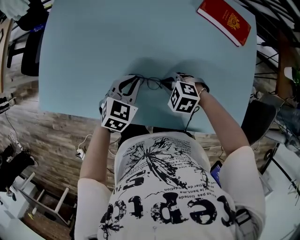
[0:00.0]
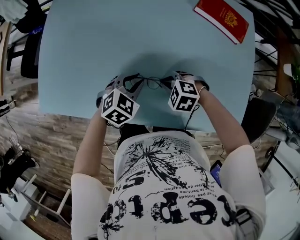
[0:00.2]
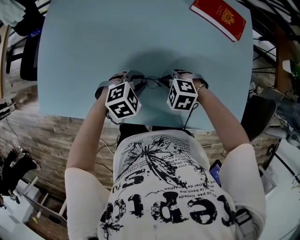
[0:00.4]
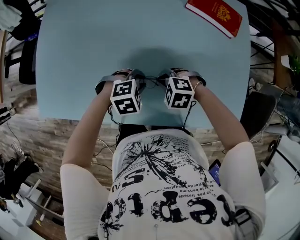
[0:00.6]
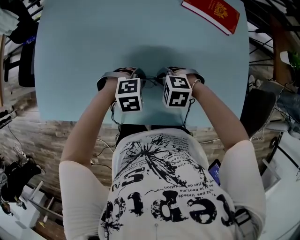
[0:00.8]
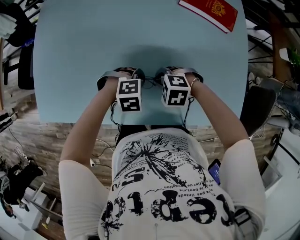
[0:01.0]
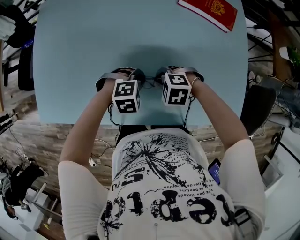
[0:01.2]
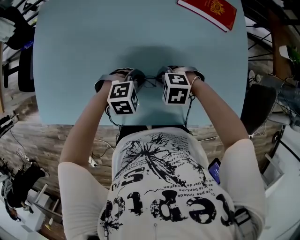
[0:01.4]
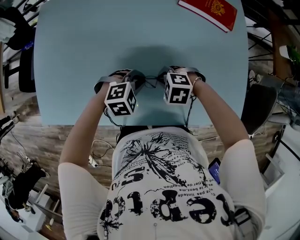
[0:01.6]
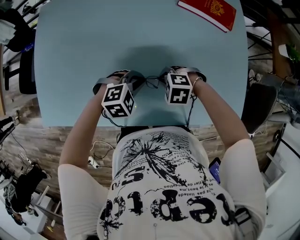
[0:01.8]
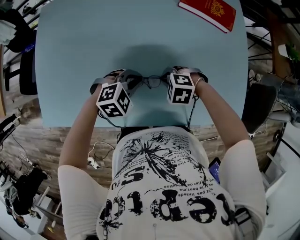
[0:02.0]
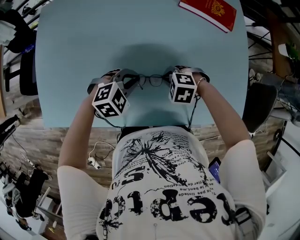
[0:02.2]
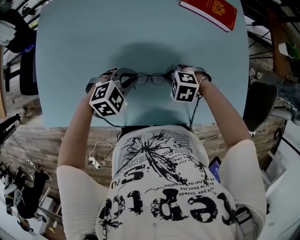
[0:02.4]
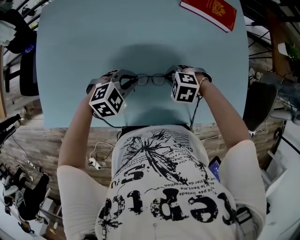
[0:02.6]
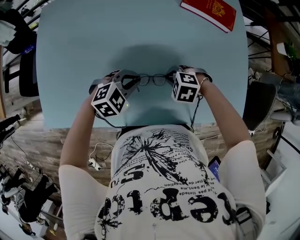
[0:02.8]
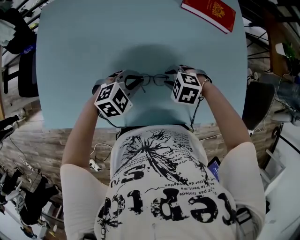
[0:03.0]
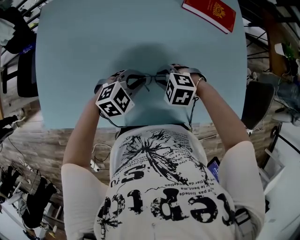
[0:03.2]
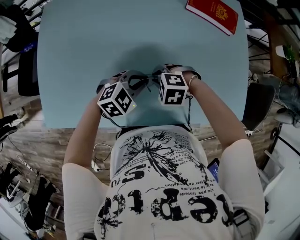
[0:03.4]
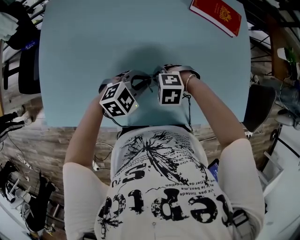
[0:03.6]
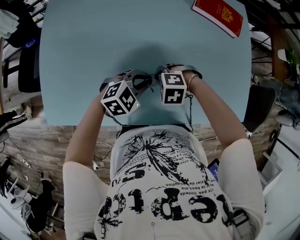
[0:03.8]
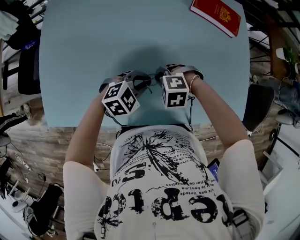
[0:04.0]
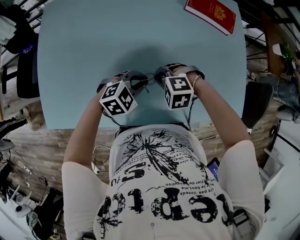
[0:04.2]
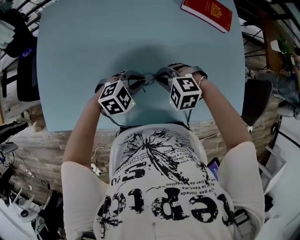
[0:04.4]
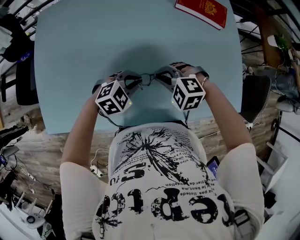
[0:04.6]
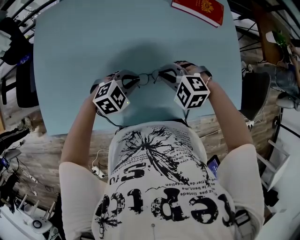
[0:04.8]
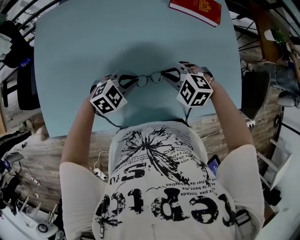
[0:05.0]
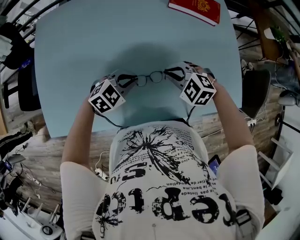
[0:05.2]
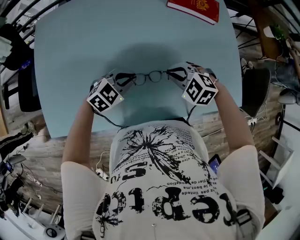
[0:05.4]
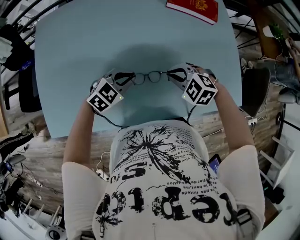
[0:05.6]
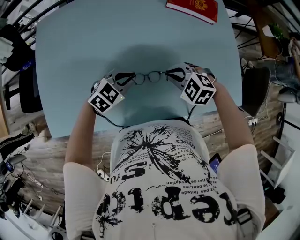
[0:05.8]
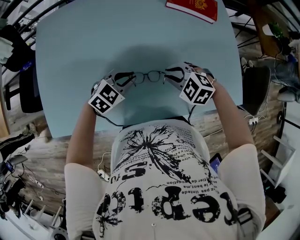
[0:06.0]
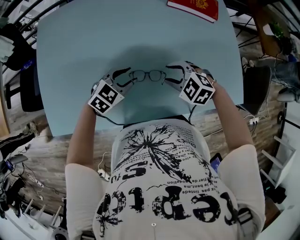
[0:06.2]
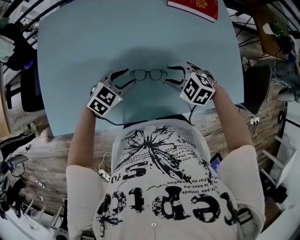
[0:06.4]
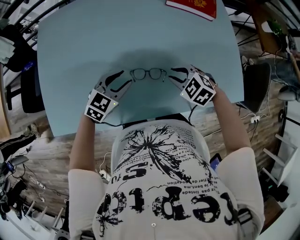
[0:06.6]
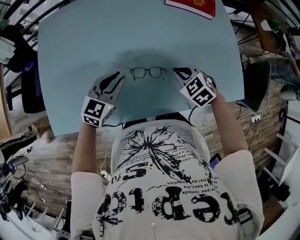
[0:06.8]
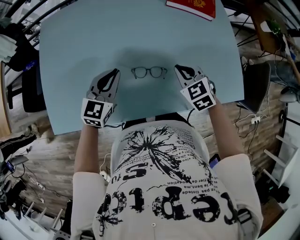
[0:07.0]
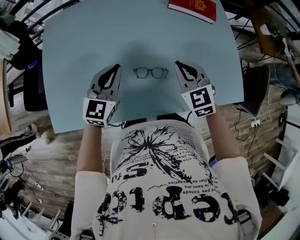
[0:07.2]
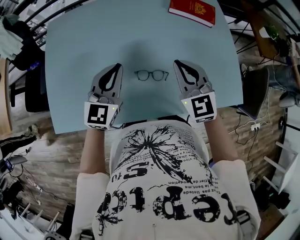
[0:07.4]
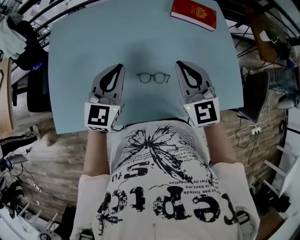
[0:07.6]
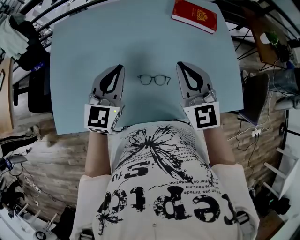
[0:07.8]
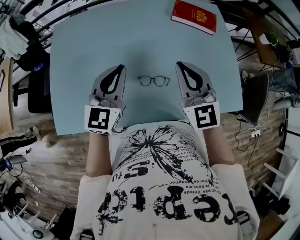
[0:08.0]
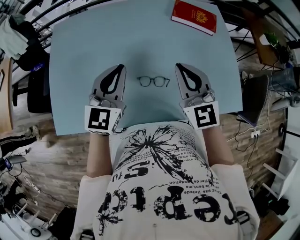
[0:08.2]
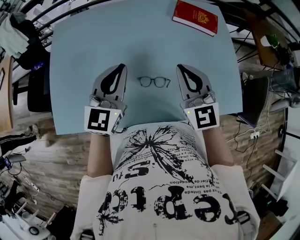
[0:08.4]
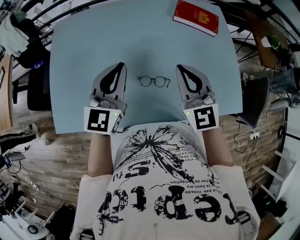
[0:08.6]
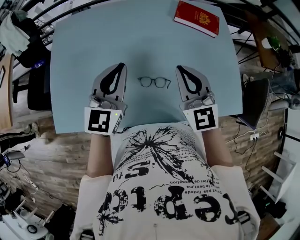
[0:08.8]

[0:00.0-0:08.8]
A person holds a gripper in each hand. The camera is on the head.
0:00.0 to 0:01.4: The left gripper shifts by roughly 10 cm, and twists some 40 degrees clockwise, seen from behind.
0:01.4 to 0:03.0: The right gripper opens its fingers. Meanwhile the left gripper shifts by approximately 5 cm.
0:03.0 to 0:04.4: The right gripper moves about 10 cm, and closes its fingers.
0:04.4 to 0:05.8: The right gripper changes place by some 10 cm, and changes its angle by approximately 20 degrees.
0:05.8 to 0:07.4: The right gripper is displaced upward by about 15 cm, angles its fingers upward, by approximately 40 degrees, and opens and closes again. Meanwhile the left gripper goes some 20 cm upward and to the left, angles its fingers upward, by some 30 degrees, and opens and closes again.
0:07.4 to 0:08.8: Both grippers move upward, some 5 cm.

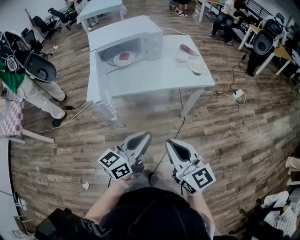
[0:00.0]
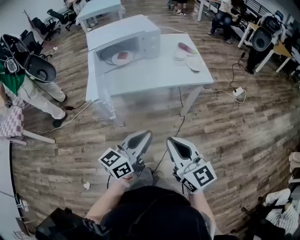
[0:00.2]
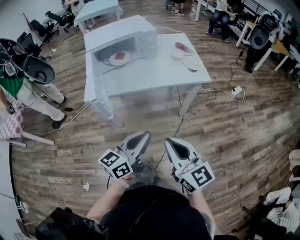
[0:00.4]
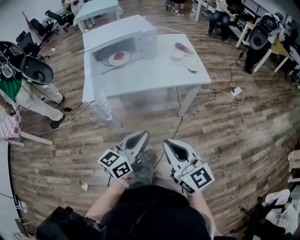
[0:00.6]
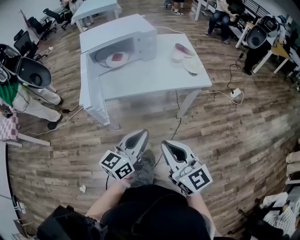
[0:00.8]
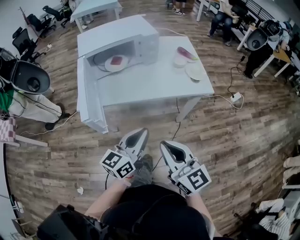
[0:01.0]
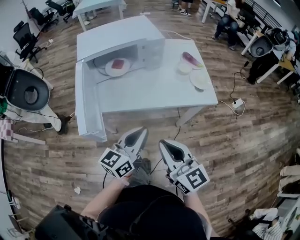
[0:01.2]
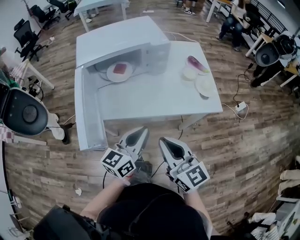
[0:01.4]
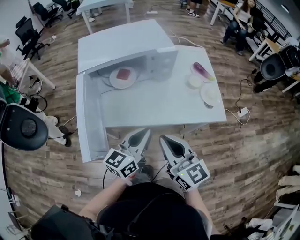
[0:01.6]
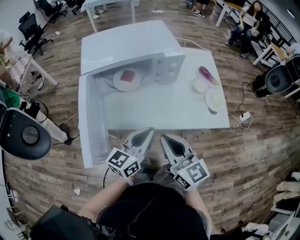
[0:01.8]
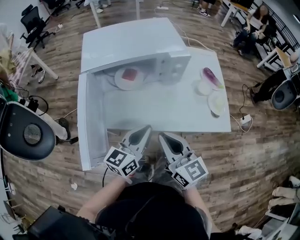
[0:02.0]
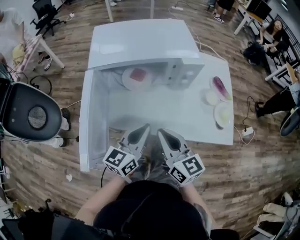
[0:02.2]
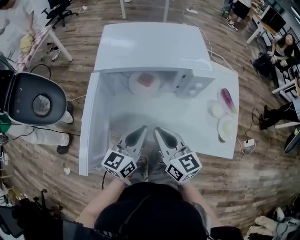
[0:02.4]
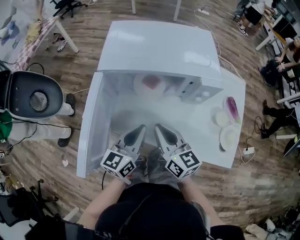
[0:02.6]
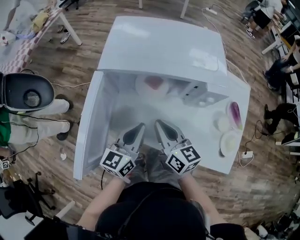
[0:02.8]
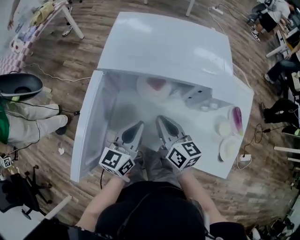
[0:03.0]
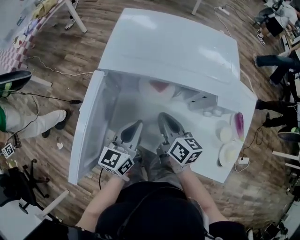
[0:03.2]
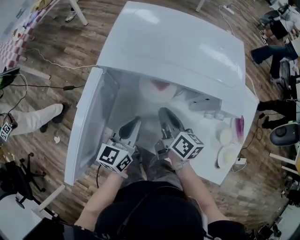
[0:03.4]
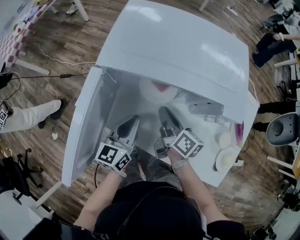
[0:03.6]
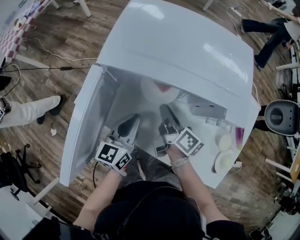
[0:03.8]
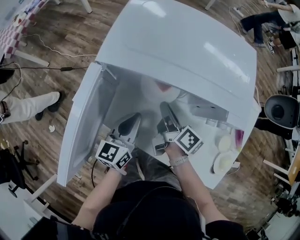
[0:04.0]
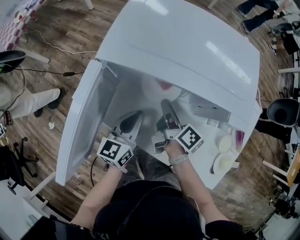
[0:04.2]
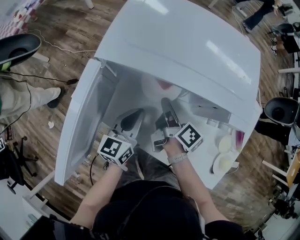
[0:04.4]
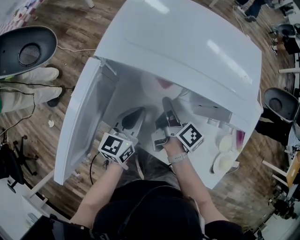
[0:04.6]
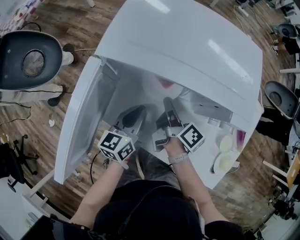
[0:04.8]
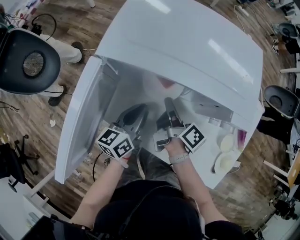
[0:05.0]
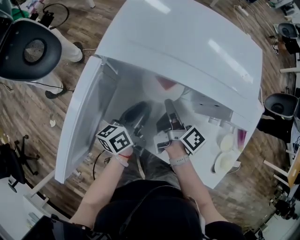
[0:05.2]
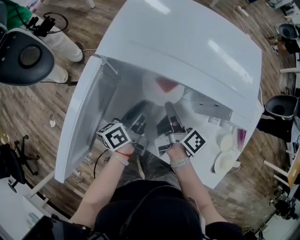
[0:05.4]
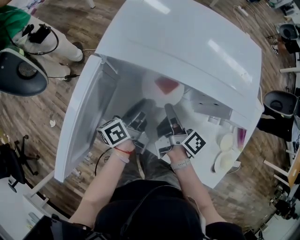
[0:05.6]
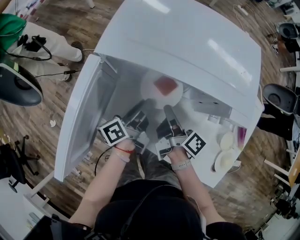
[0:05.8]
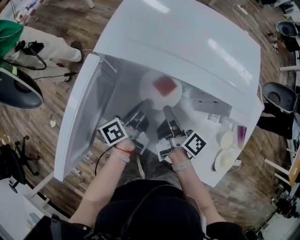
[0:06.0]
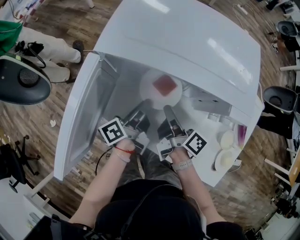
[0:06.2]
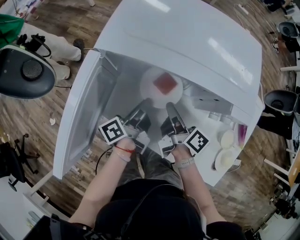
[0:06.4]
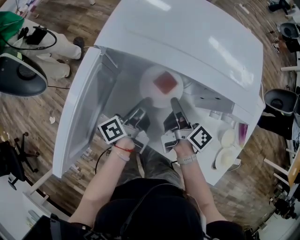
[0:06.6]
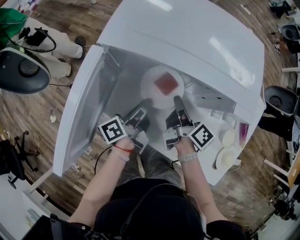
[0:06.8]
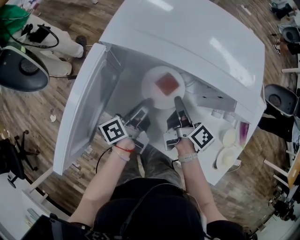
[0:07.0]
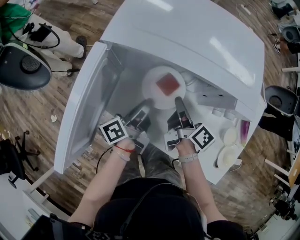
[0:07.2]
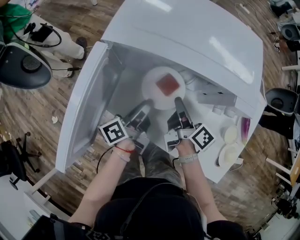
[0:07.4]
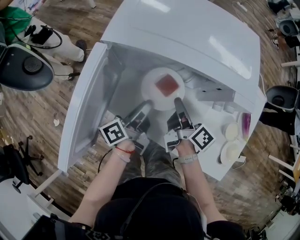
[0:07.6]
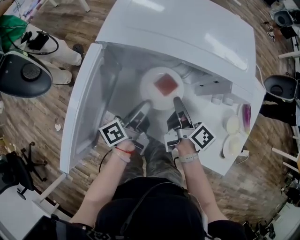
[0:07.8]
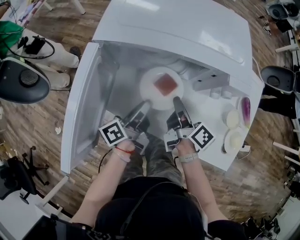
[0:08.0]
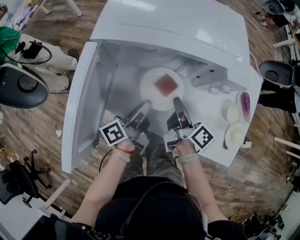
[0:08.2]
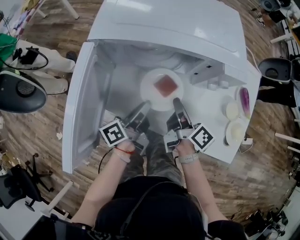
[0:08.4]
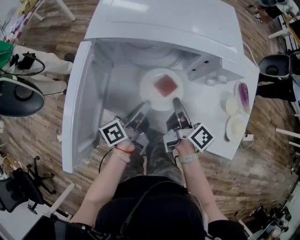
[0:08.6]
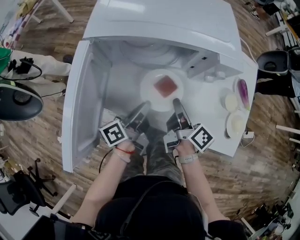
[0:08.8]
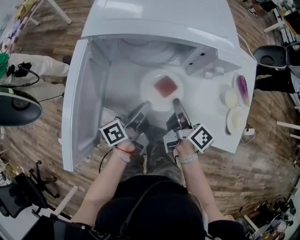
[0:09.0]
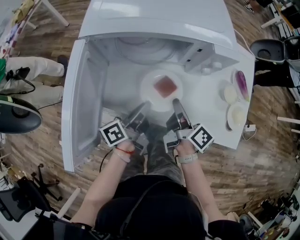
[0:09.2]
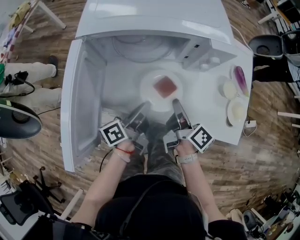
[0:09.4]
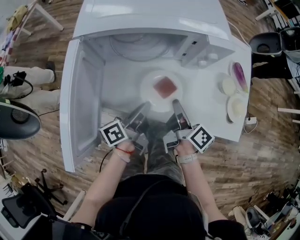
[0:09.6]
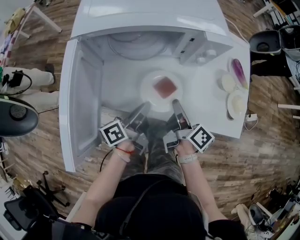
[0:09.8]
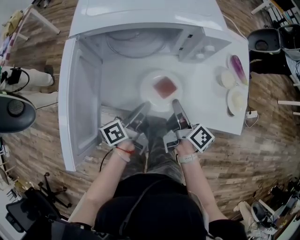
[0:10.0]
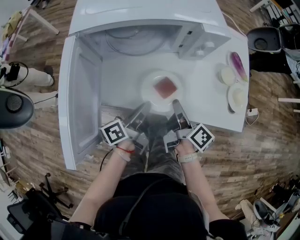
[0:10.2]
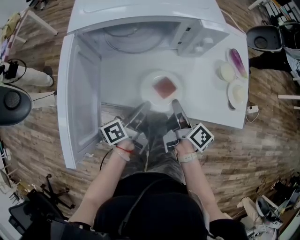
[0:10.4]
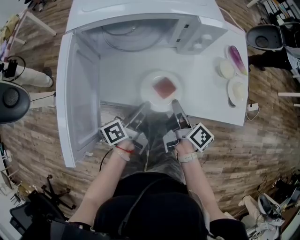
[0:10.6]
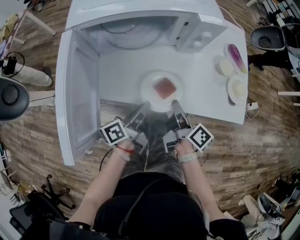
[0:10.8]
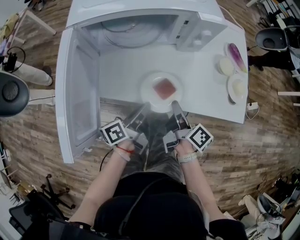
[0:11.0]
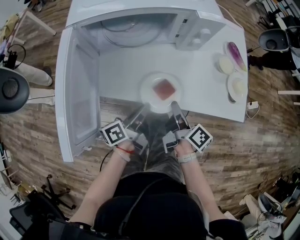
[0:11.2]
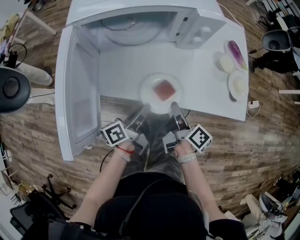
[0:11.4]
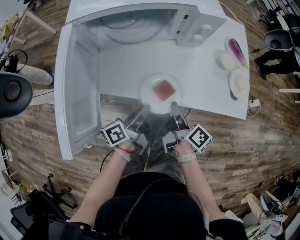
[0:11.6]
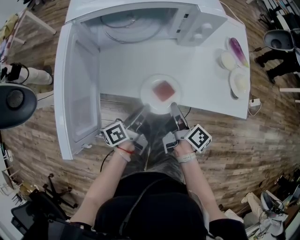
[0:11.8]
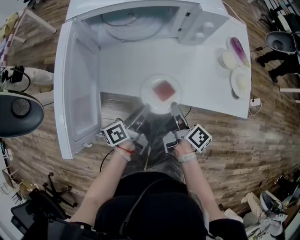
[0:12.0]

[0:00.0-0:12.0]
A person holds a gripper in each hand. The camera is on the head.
0:00.0 to 0:01.6: The two grippers go roughly 25 cm forward.
0:01.6 to 0:03.0: The left gripper shifts by about 20 cm, and rotates roughly 30 degrees. Meanwhile the right gripper ends up about 30 cm from where it was, and rotates roughly 30 degrees.
0:03.0 to 0:04.4: The right gripper travels forward and downward by roughly 10 cm, and rotates around the line of its fingers by roughly 40 degrees, clockwise from behind, while the left gripper moves downward and forward, about 10 cm.
0:04.4 to 0:06.0: The left gripper rotates around the line of its fingers by about 50 degrees, counterclockwise from behind.
0:06.0 to 0:07.6: There are only small adjustments of the grippers.
0:07.6 to 0:09.0: The left gripper moves backward, approximately 5 cm. Meanwhile the right gripper heads backward, covering roughly 10 cm.
0:09.0 to 0:10.4: The two grippers go about 5 cm backward.
0:10.4 to 0:12.0: The two grippers go about 5 cm backward.

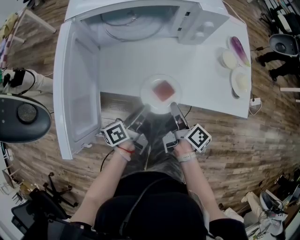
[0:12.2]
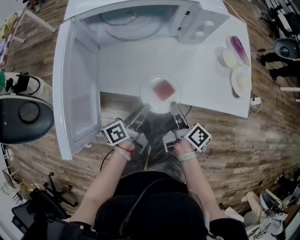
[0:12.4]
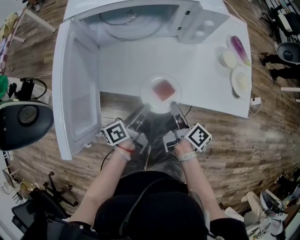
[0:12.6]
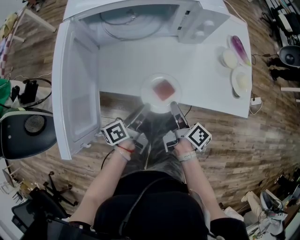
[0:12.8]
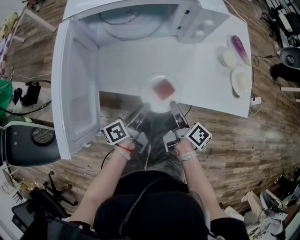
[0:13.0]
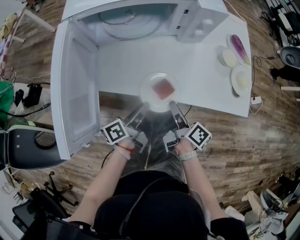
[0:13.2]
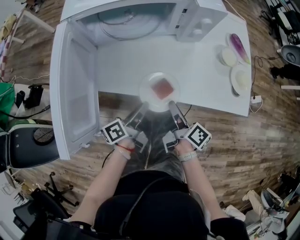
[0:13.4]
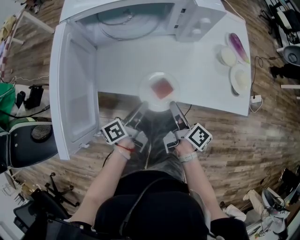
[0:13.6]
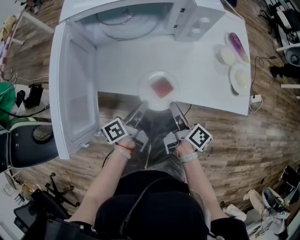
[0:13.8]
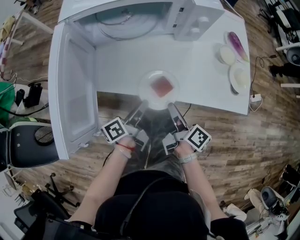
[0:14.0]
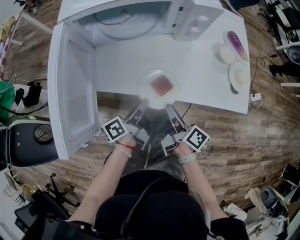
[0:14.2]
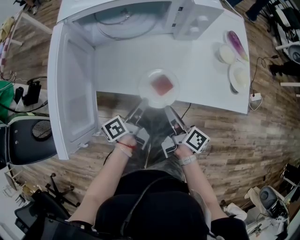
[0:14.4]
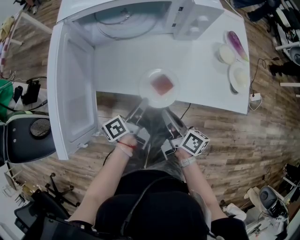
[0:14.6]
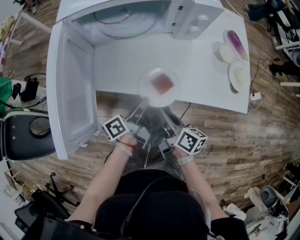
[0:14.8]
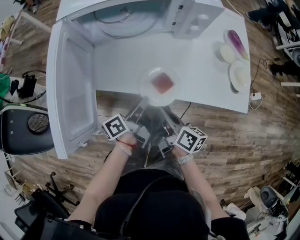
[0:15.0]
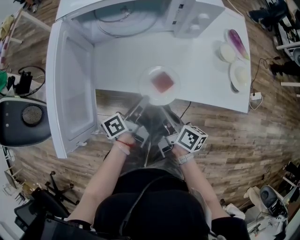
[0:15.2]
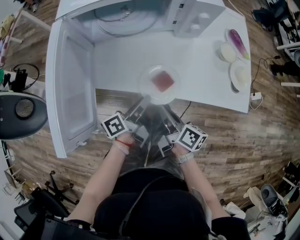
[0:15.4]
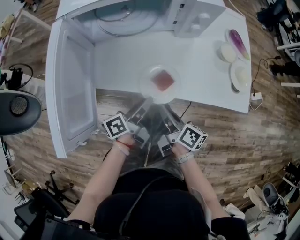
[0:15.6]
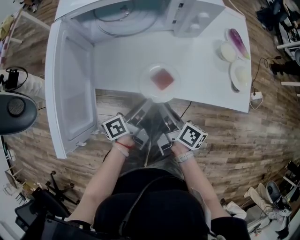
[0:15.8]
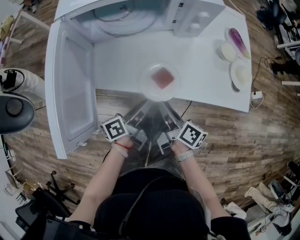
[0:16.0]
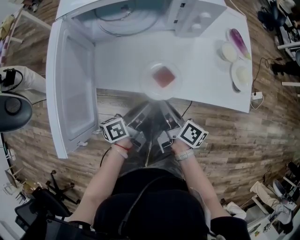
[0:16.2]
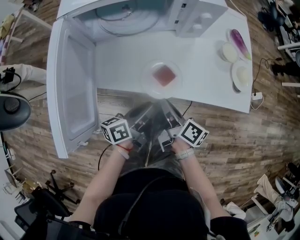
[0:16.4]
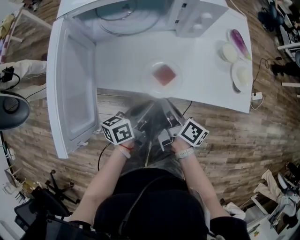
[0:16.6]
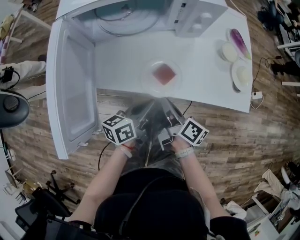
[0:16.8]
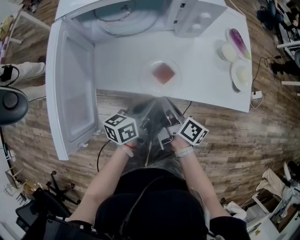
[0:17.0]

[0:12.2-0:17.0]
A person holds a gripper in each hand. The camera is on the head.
0:12.2 to 0:13.8: The grippers stay close to where they were, moving slightly.
0:13.8 to 0:15.4: The right gripper ends up roughly 5 cm from where it was.
0:15.4 to 0:17.0: The left gripper swivels about 40 degrees.
